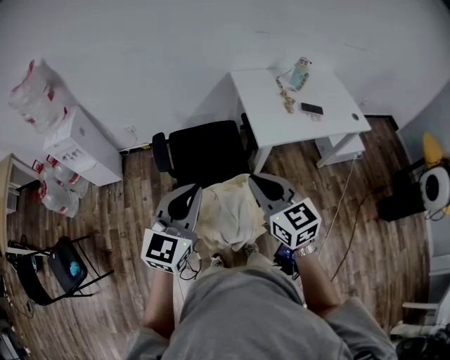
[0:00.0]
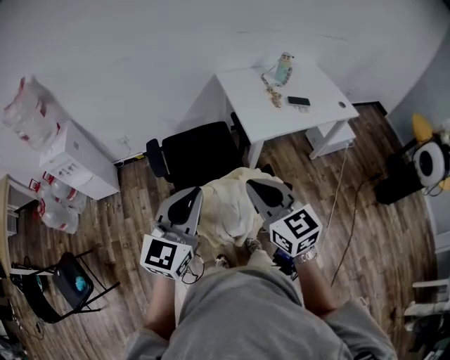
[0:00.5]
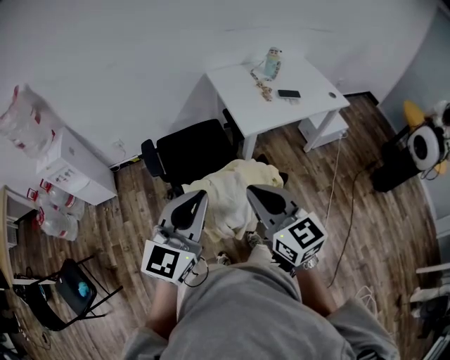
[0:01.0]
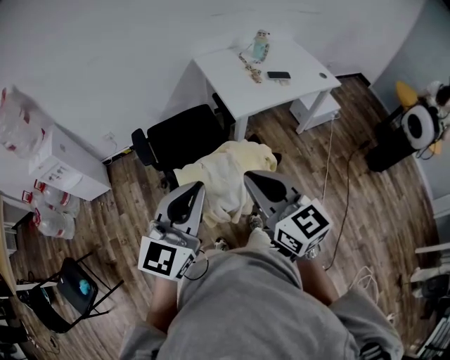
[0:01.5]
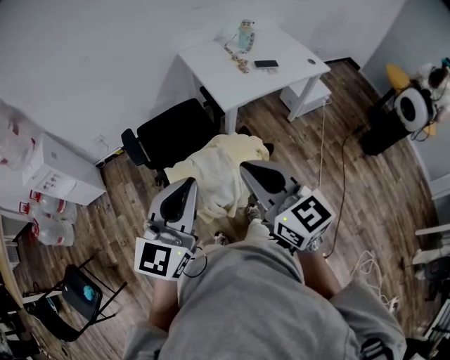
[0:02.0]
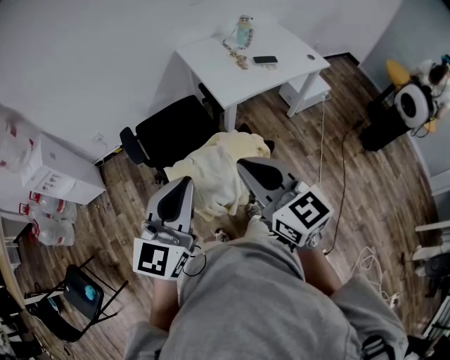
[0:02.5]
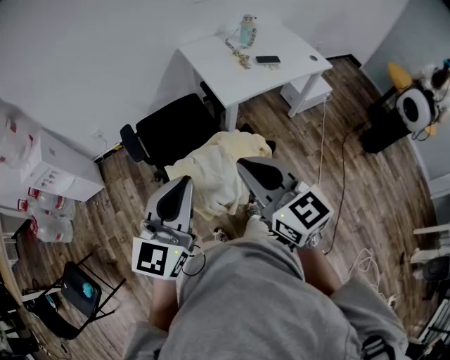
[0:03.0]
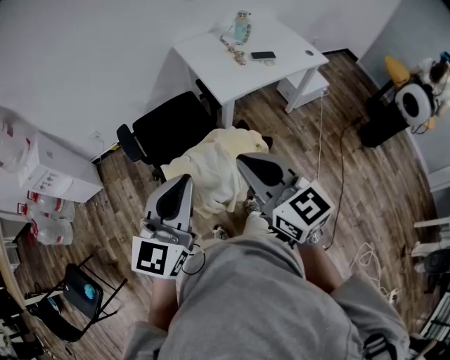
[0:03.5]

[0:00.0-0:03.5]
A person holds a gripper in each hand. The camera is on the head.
0:00.0 to 0:02.0: The right gripper travels backward and upward by approximately 15 cm. Meanwhile the left gripper moves backward, roughly 10 cm.
0:02.0 to 0:03.5: The grippers move only a little.

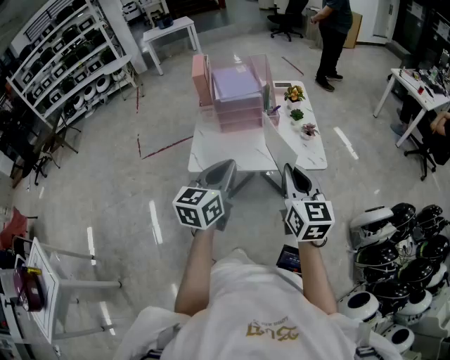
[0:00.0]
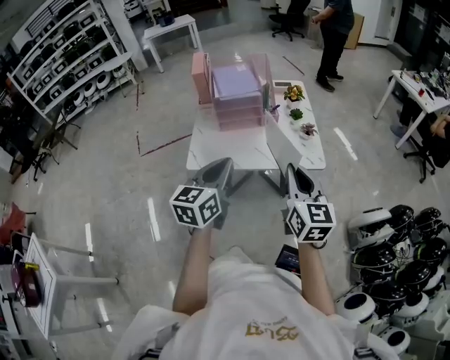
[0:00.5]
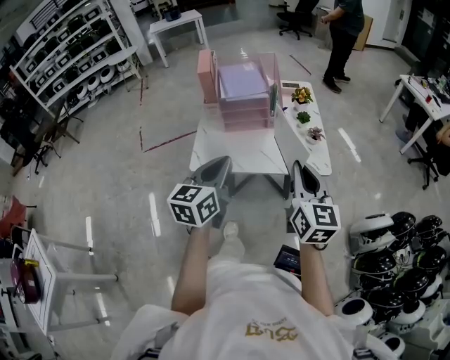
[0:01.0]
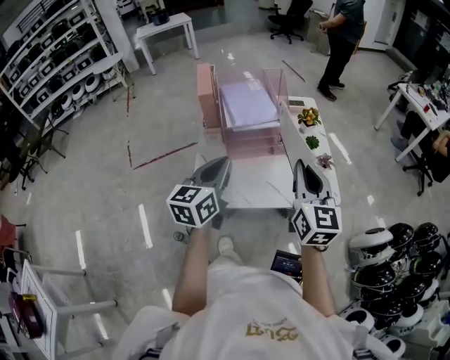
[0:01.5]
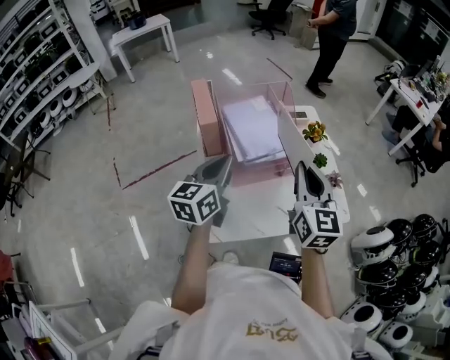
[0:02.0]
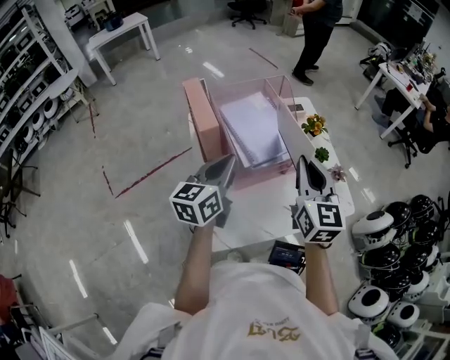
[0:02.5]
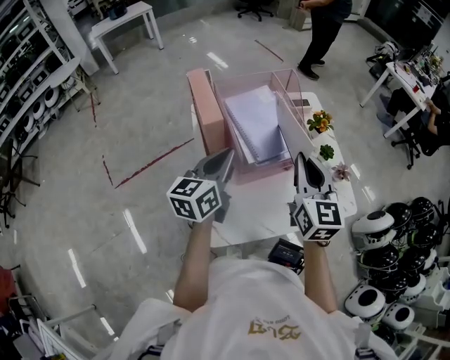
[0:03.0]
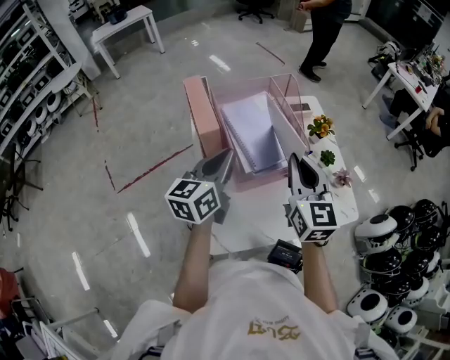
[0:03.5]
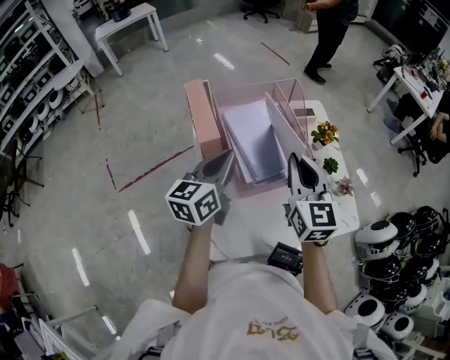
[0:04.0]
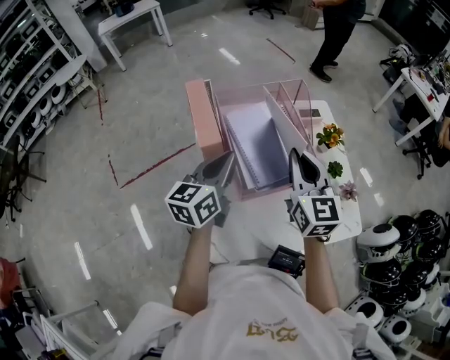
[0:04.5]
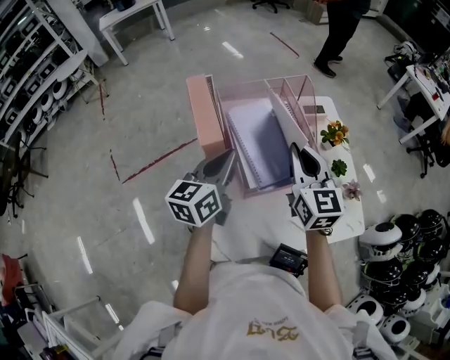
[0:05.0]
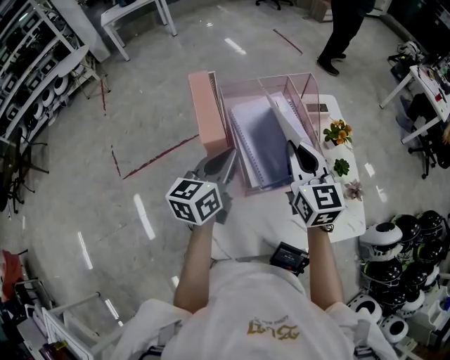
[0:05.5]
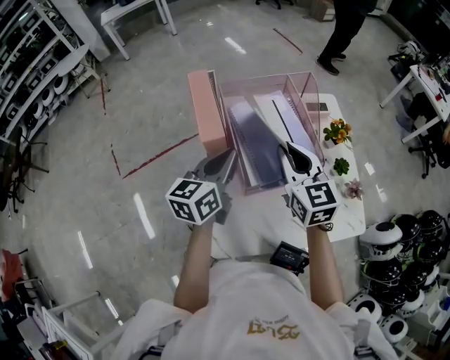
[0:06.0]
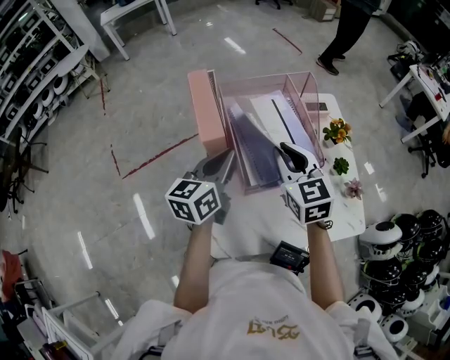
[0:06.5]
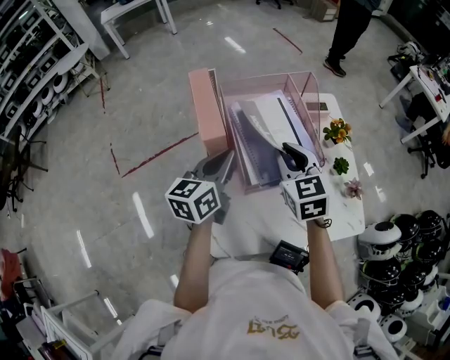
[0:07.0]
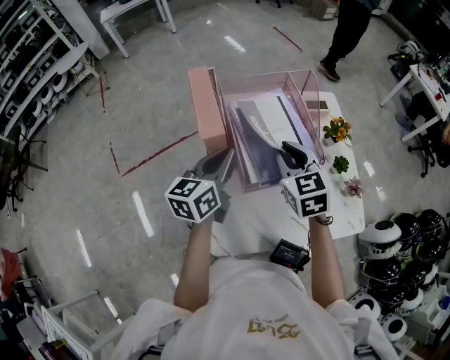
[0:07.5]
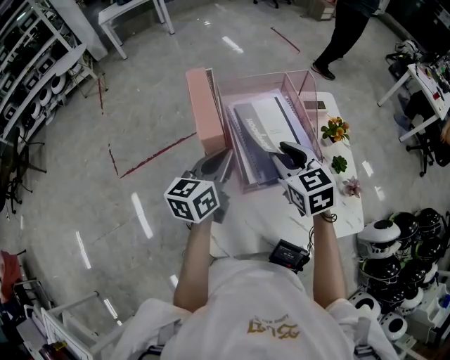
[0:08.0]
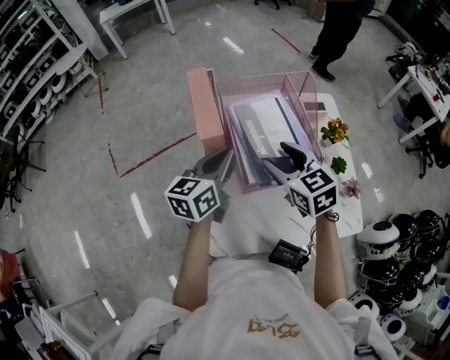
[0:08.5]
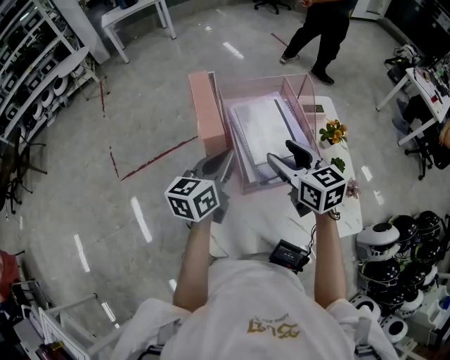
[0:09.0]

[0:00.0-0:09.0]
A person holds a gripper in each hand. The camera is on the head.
0:00.0 to 0:02.0: Both grippers travel together forward and to the left, approximately 35 cm.
0:02.0 to 0:04.5: The left gripper shifts roughly 10 cm forward. The right gripper is displaced forward and to the left by approximately 15 cm.
0:04.5 to 0:07.0: The right gripper shifts approximately 5 cm downward, and turns by about 20 degrees.
0:07.0 to 0:09.0: The right gripper swivels roughly 20 degrees, and opens its fingers.

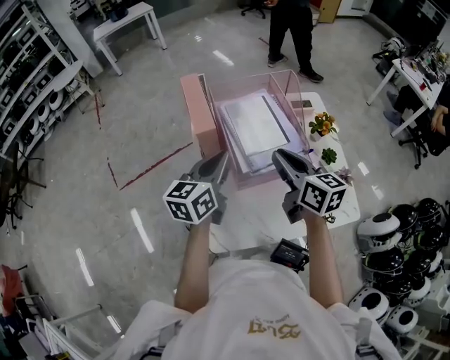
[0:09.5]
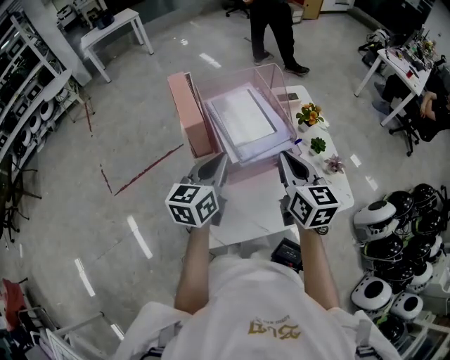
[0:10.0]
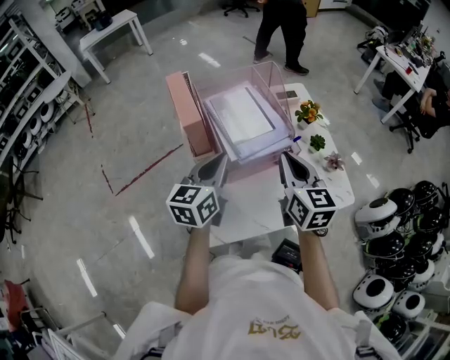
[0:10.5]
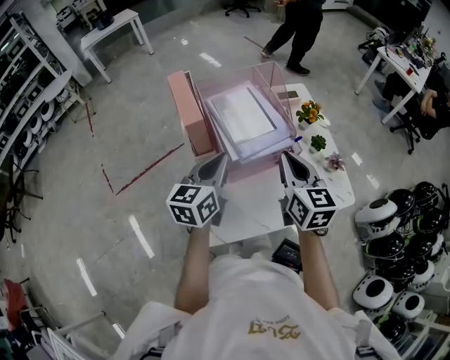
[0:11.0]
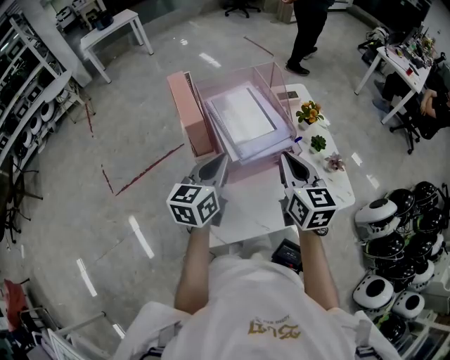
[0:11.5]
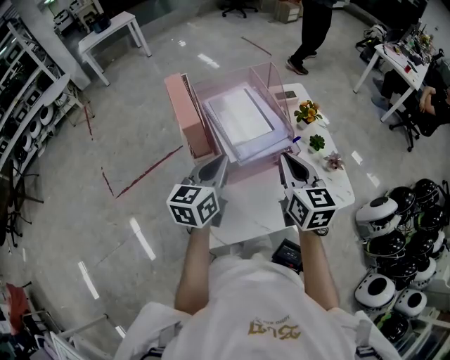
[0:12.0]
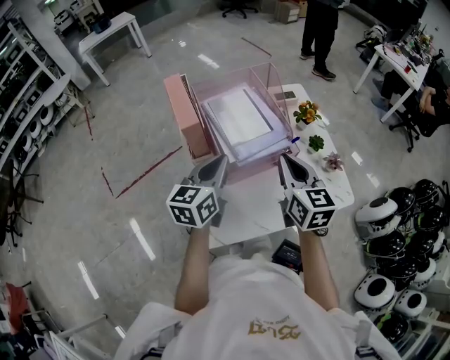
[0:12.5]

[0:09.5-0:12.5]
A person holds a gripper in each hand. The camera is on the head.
0:09.5 to 0:11.0: The right gripper is displaced to the right by some 5 cm, and rotates some 20 degrees.
0:11.0 to 0:12.5: The two grippers keep their place.

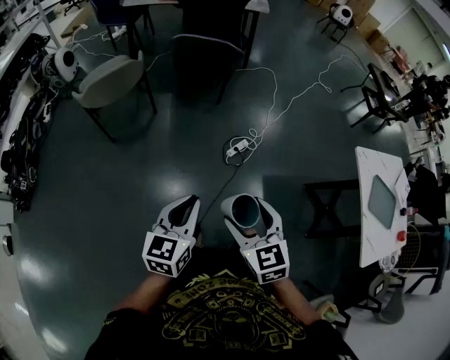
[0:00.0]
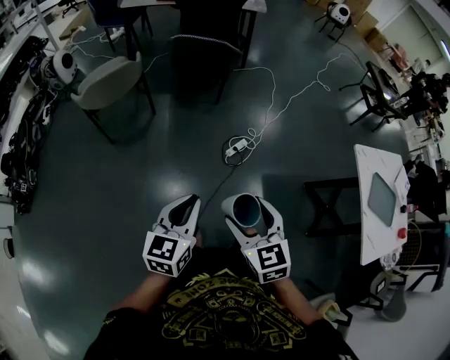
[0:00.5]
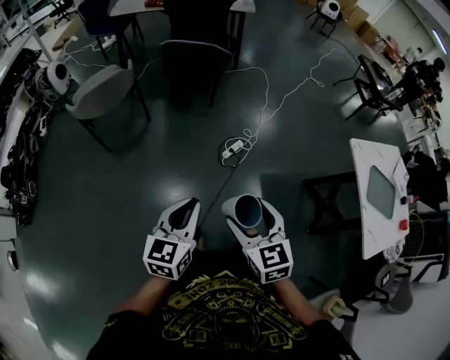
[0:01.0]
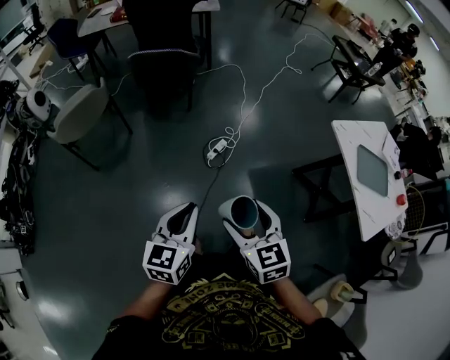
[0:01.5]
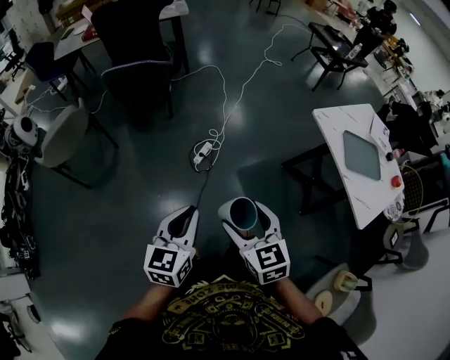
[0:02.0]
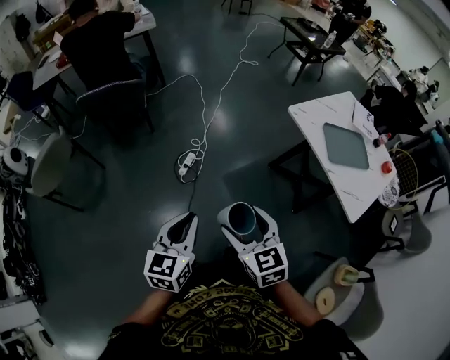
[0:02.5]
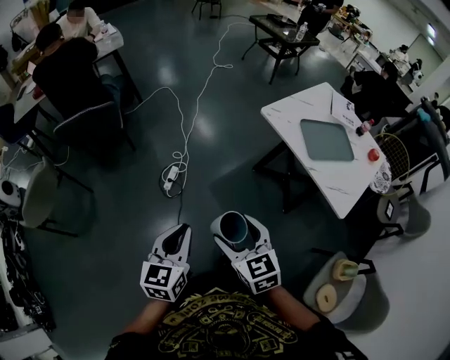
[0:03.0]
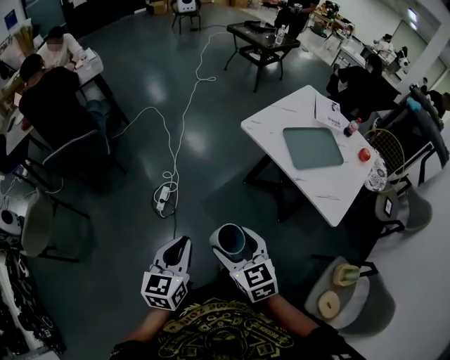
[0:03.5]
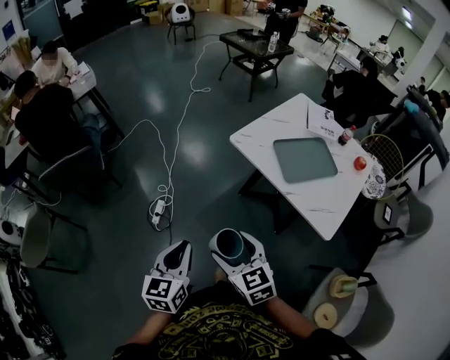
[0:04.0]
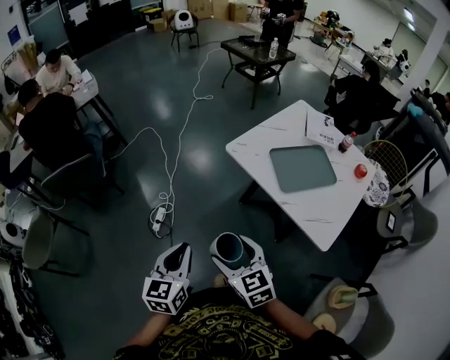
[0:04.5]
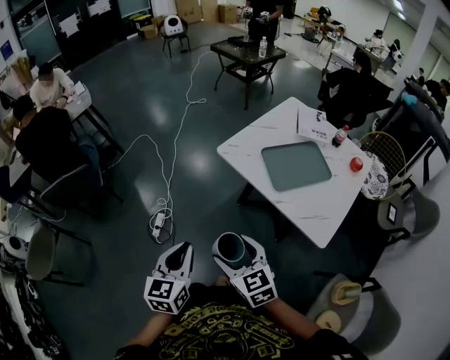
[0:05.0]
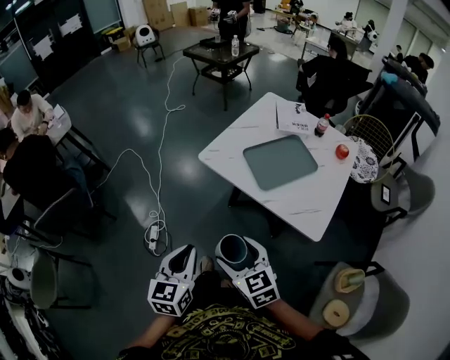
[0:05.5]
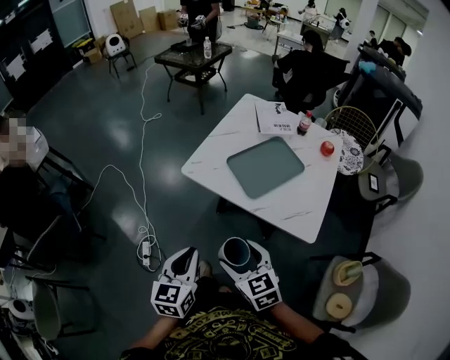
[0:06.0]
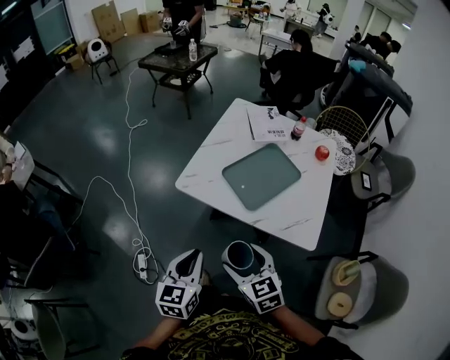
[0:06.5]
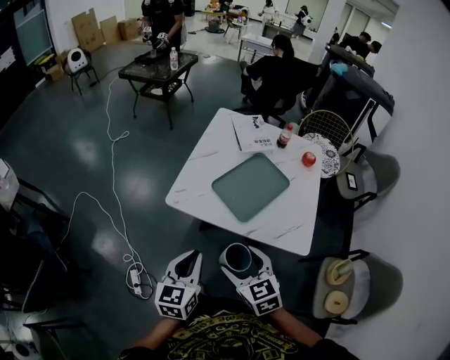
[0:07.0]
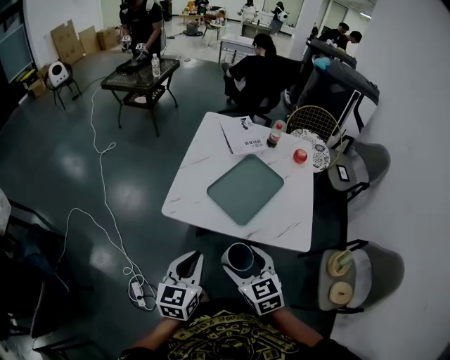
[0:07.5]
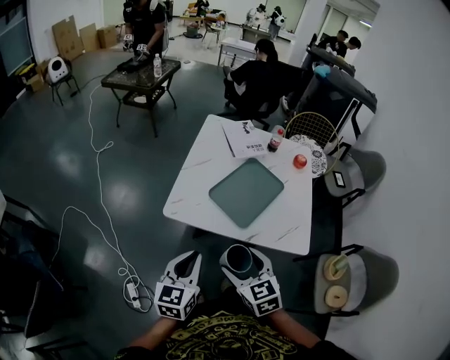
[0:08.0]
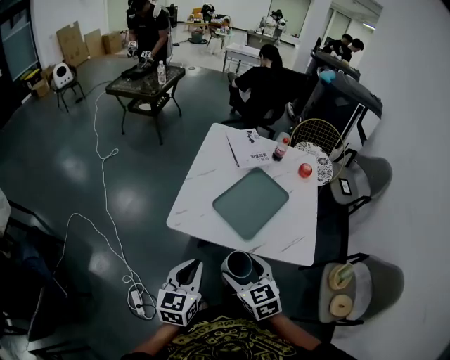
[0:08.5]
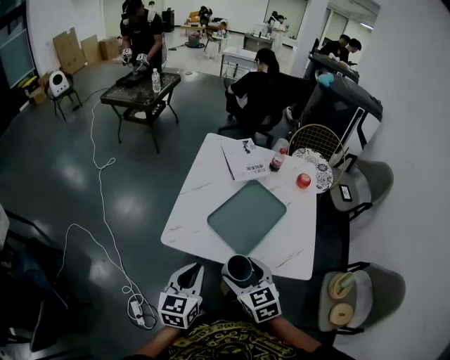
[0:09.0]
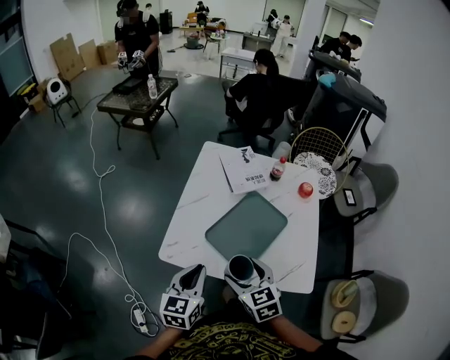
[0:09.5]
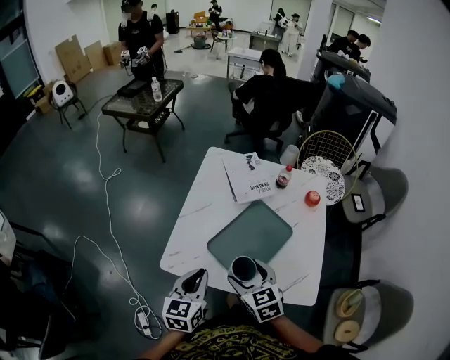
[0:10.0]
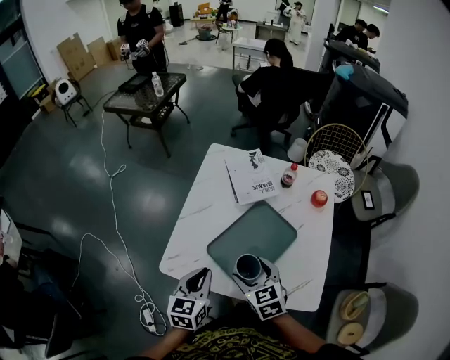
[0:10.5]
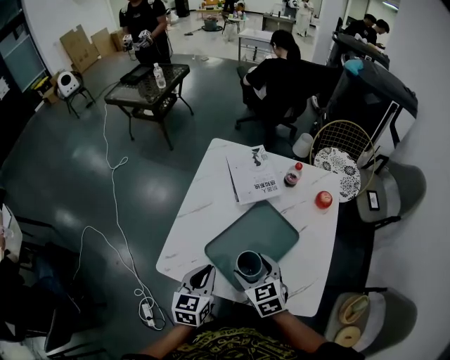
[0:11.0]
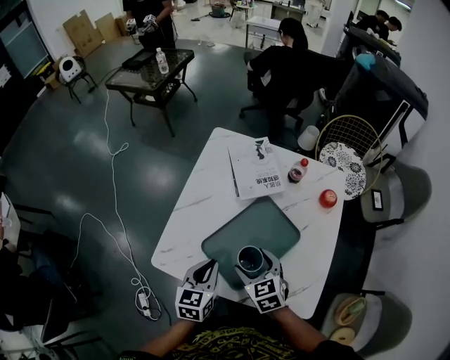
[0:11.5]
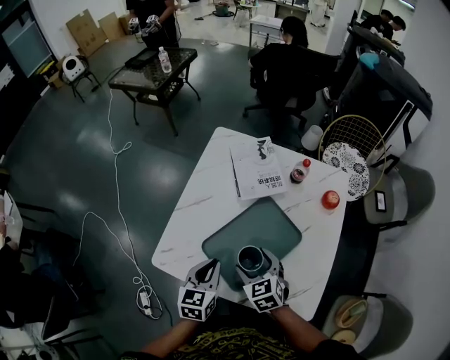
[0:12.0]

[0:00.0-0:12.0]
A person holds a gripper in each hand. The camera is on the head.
0:00.0 to 0:02.0: Both grippers travel together to the right, some 15 cm.
0:02.0 to 0:04.0: Both grippers travel together to the right and forward, some 25 cm.
0:04.0 to 0:06.0: Both grippers travel together to the right and forward, about 15 cm.
0:06.0 to 0:08.0: The grippers both shift forward by approximately 15 cm. The left gripper turns by some 20 degrees, while the right gripper turns by about 20 degrees.
0:08.0 to 0:10.0: The grippers both shift forward by about 20 cm.
0:10.0 to 0:12.0: The right gripper heads downward, forward and to the right, covering approximately 15 cm. The left gripper travels downward, to the right and forward by approximately 15 cm.
